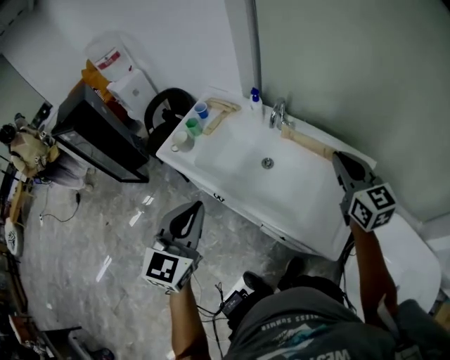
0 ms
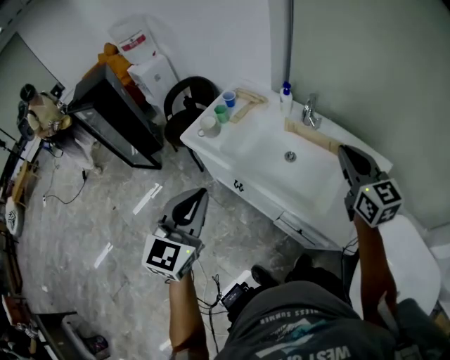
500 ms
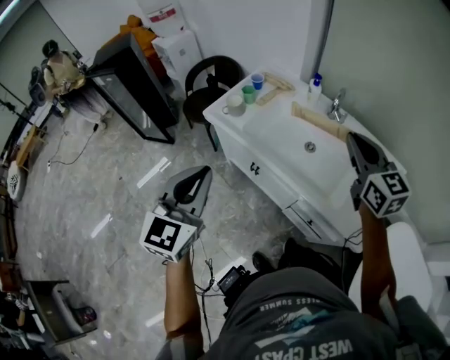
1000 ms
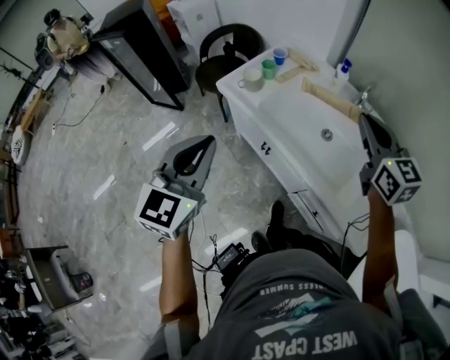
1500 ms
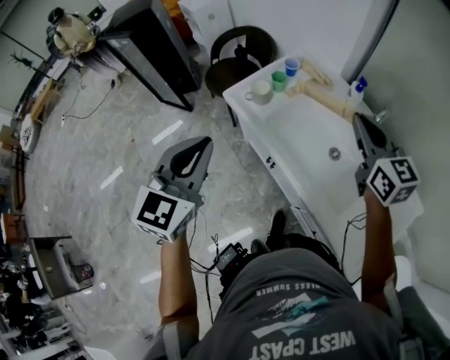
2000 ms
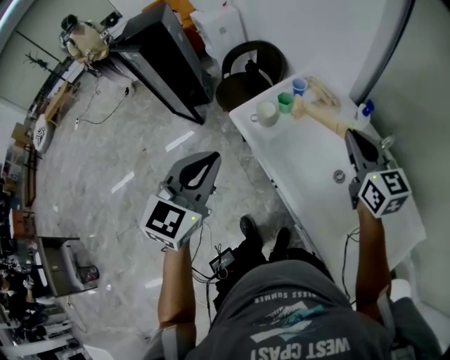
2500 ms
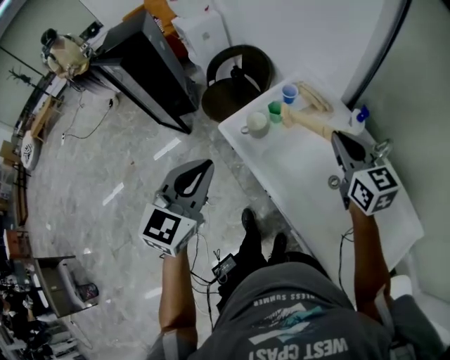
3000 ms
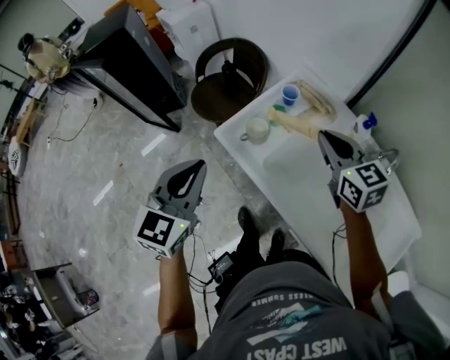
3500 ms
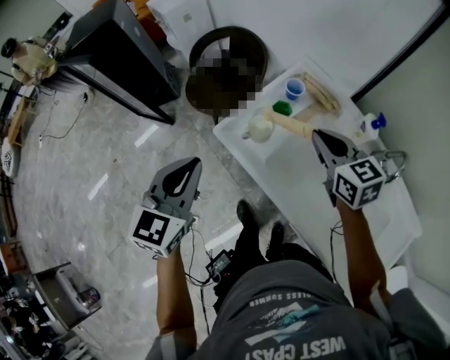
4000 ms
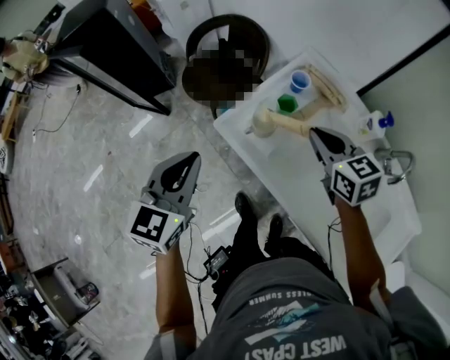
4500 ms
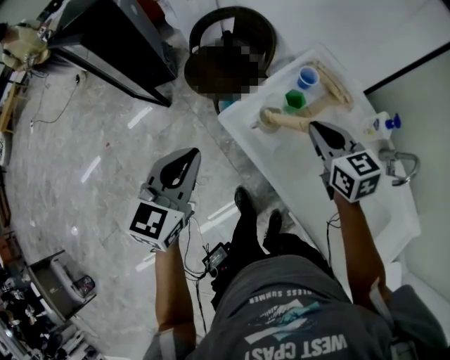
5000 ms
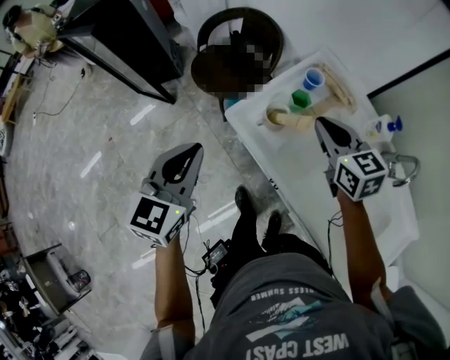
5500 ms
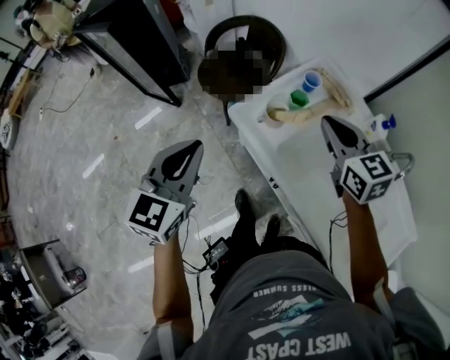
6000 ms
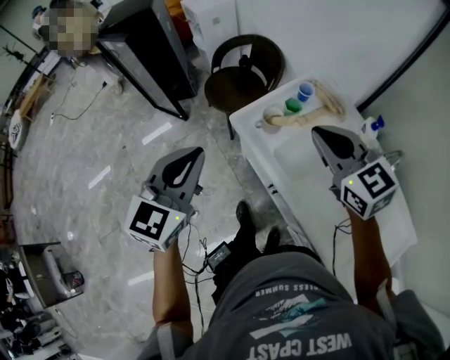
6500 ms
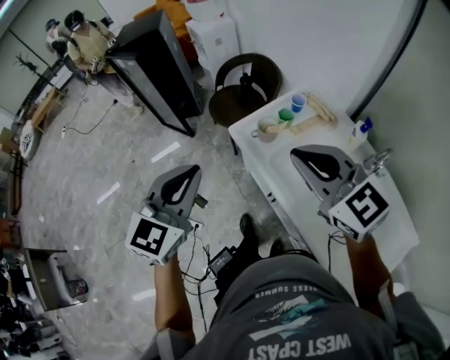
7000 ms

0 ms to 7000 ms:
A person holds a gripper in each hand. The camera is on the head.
0 ms to 2000 ms: Both grippers move to the left and forward, roughly 25 cm. The right gripper swivels some 20 degrees.
2000 ms to 3500 ms: The left gripper moves forward, about 15 cm; the right gripper is displaced forward, to the left and downward by about 20 cm.
3500 ms to 5000 ms: The grippers both shift downward and to the left by about 10 cm.
5000 ms to 7000 ms: The right gripper is displaced upward and backward by about 30 cm, and rotates approximately 40 degrees; the left gripper goes roughly 20 cm backward and upward.

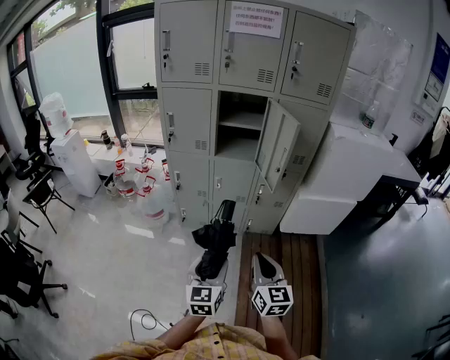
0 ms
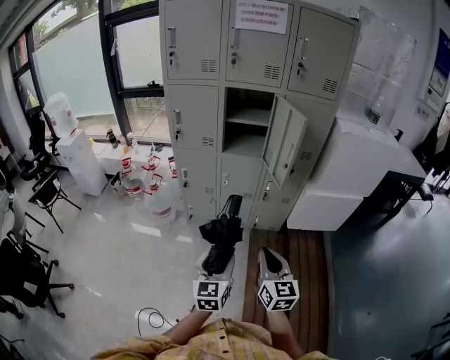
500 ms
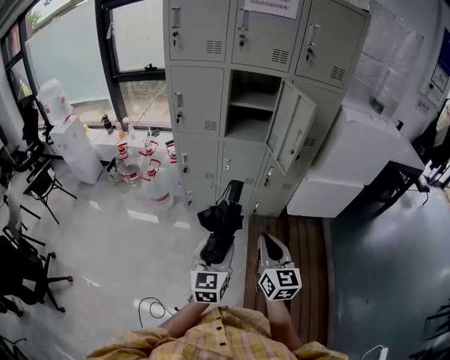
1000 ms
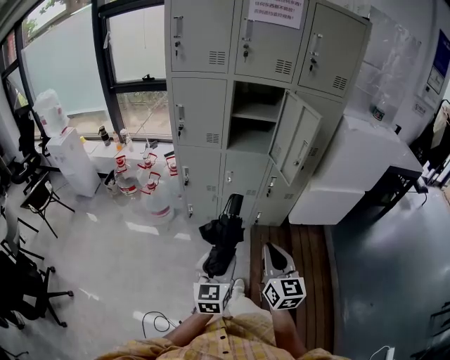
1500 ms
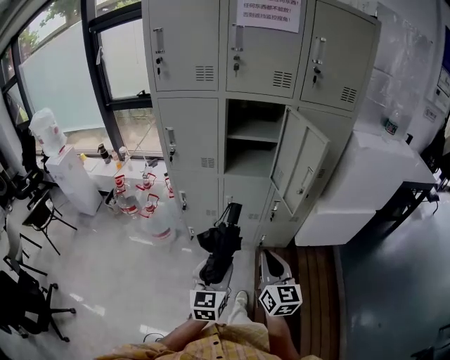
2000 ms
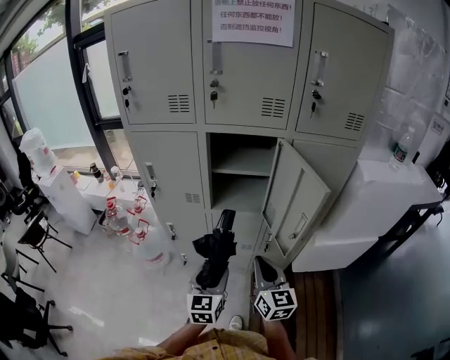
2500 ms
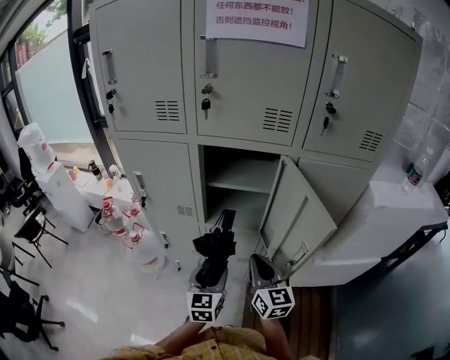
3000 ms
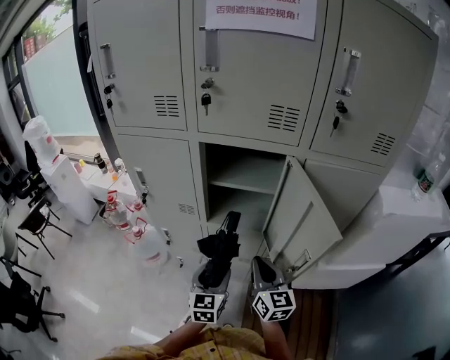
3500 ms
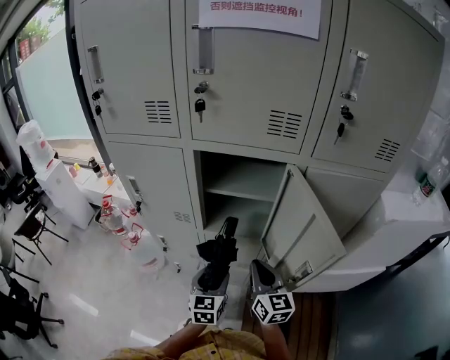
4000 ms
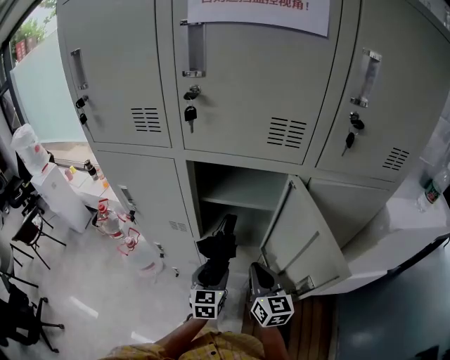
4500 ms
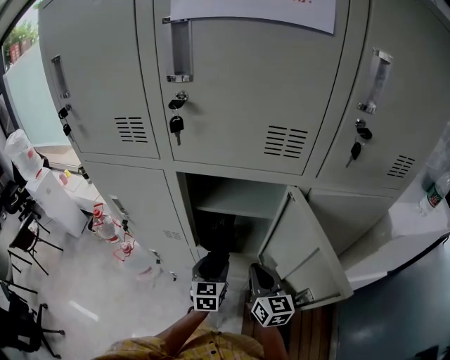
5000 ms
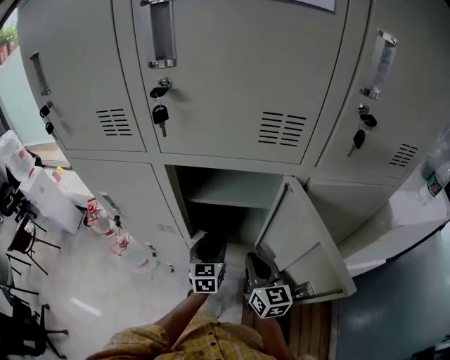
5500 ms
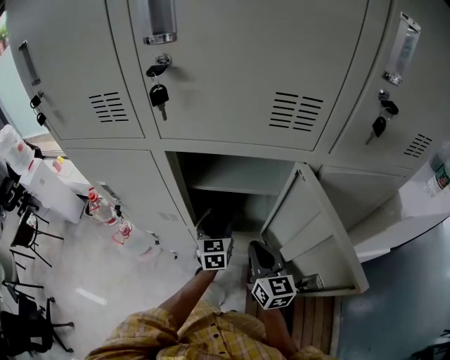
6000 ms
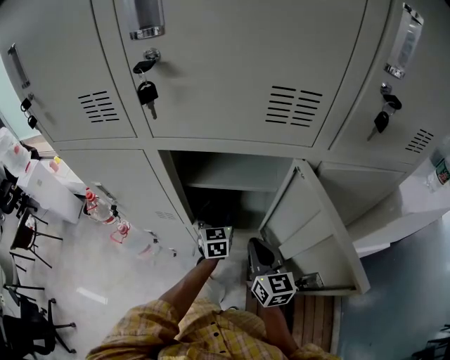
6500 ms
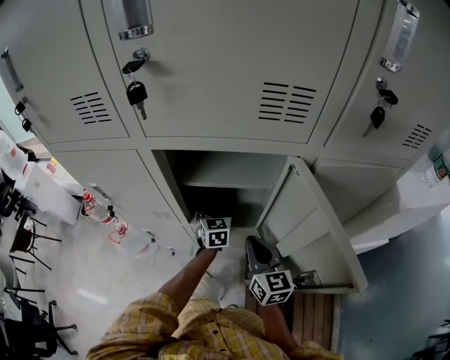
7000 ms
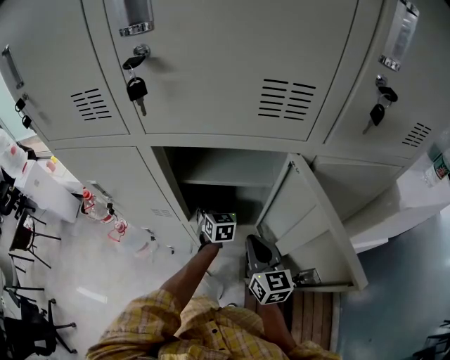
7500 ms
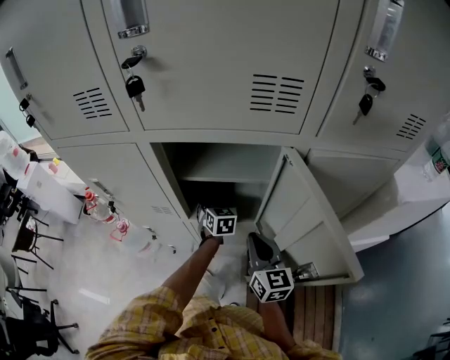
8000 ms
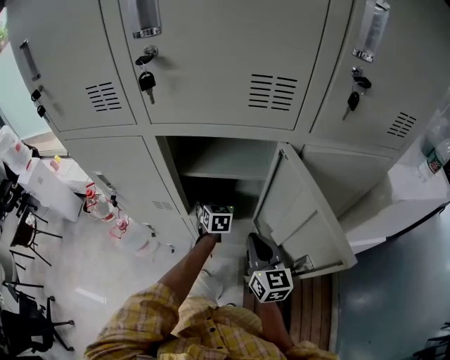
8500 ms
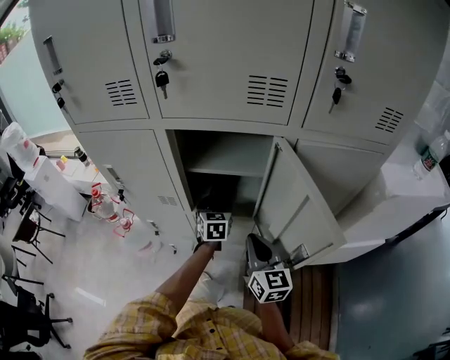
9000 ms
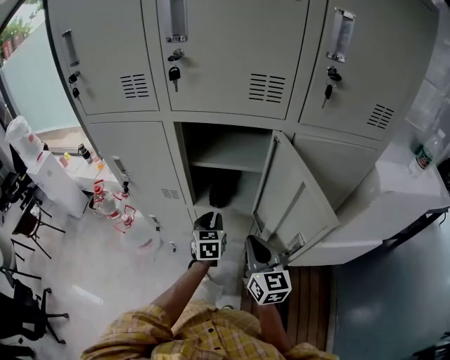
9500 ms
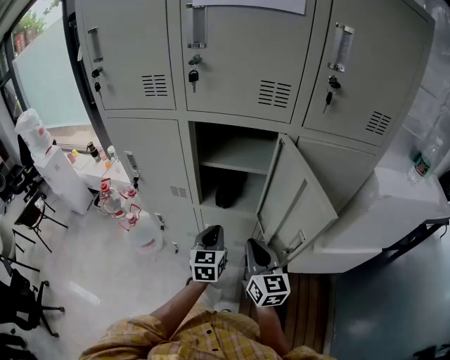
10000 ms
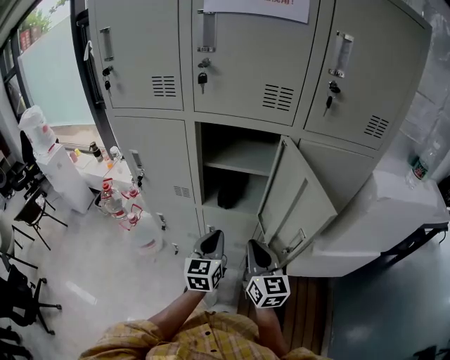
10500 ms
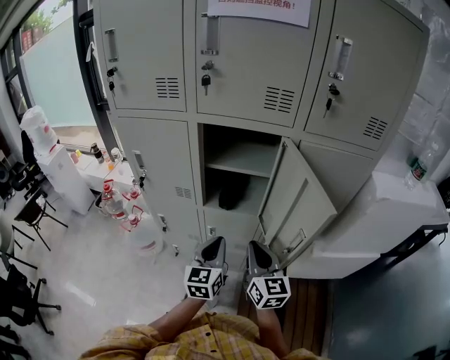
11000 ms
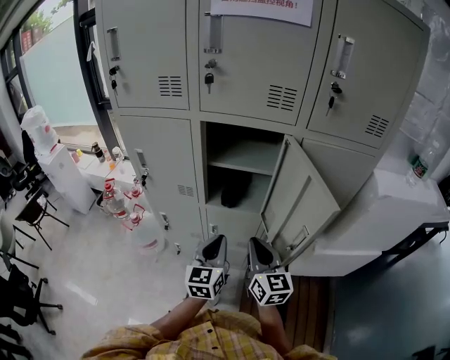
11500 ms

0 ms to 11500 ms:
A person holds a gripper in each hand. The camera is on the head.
0 ms to 2000 ms: The grippers both shift forward by some 15 cm.
2000 ms to 4000 ms: Both grippers travel together forward, some 30 cm.
4000 ms to 6000 ms: The left gripper moves forward, about 20 cm. The right gripper shifts approximately 10 cm forward.
6000 ms to 7500 ms: The left gripper travels forward by some 5 cm.
7500 ms to 9500 ms: The right gripper heads backward, covering approximately 10 cm; the left gripper shifts about 15 cm backward, and closes its fingers.
9500 ms to 11500 ms: The left gripper moves backward and upward, roughly 20 cm, and rotates some 20 degrees, while the right gripper moves about 5 cm.

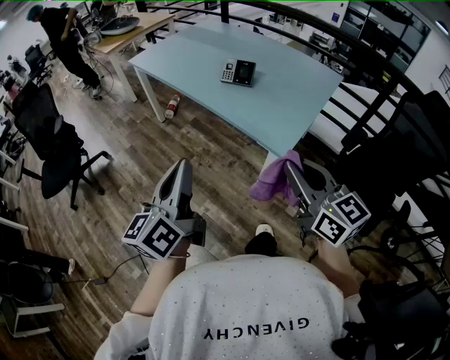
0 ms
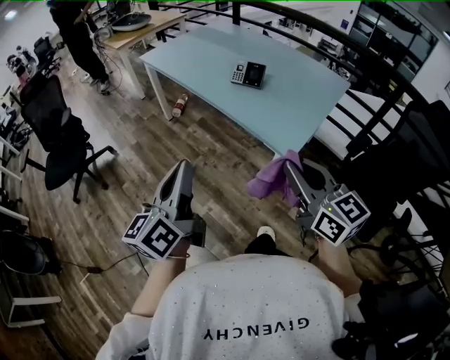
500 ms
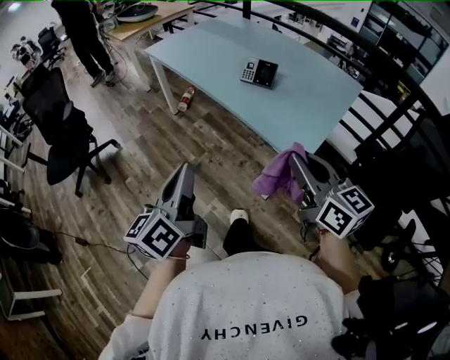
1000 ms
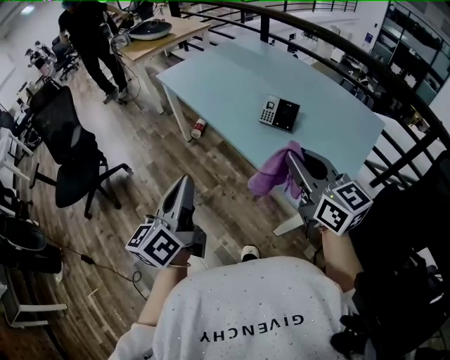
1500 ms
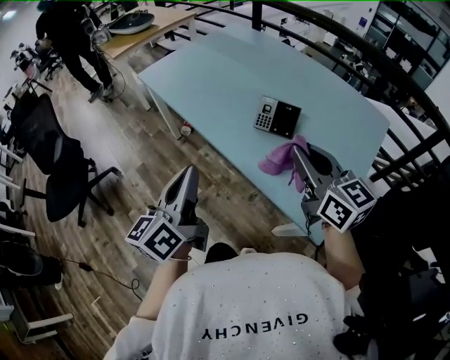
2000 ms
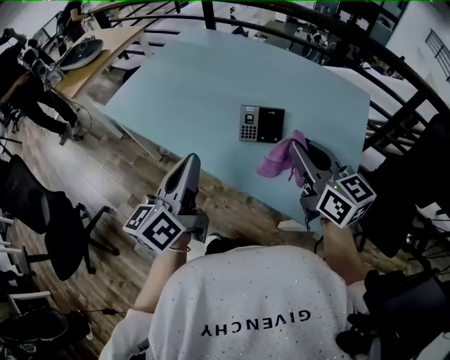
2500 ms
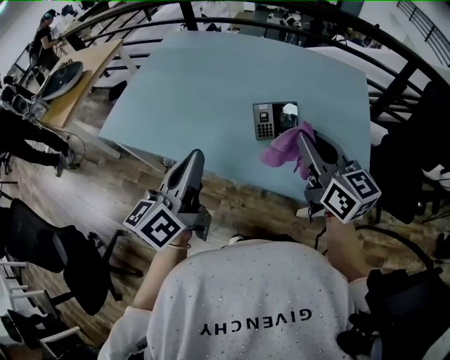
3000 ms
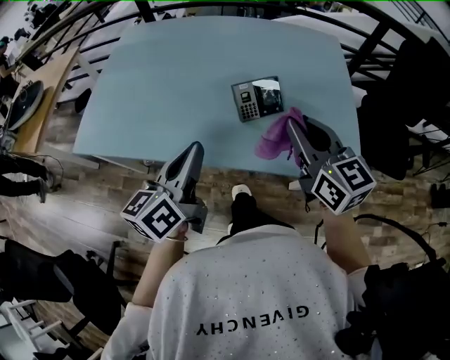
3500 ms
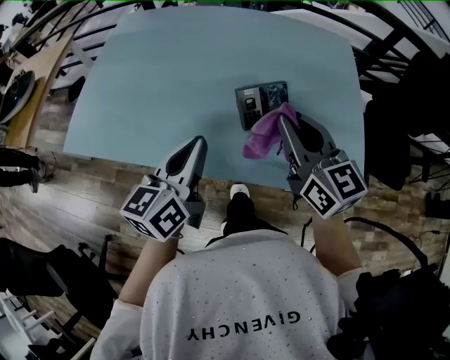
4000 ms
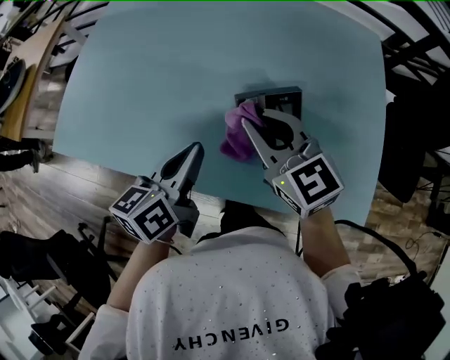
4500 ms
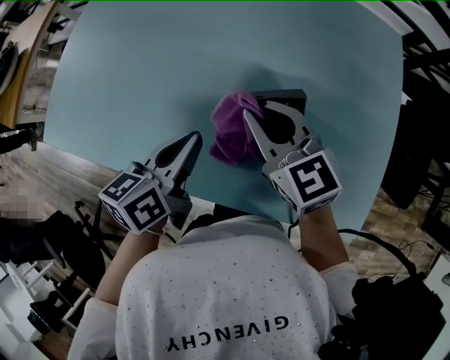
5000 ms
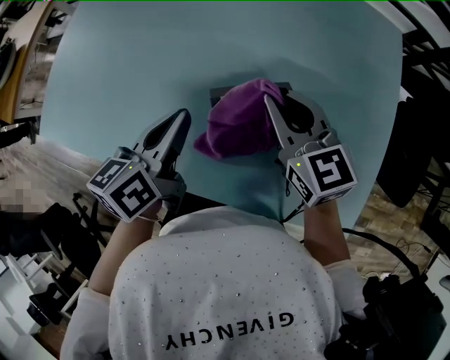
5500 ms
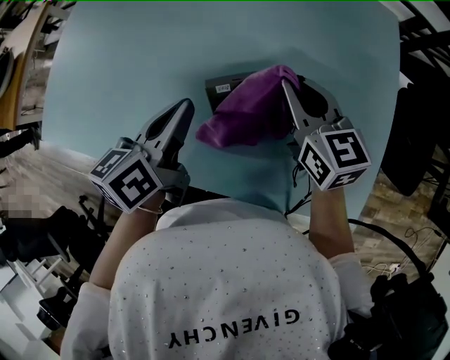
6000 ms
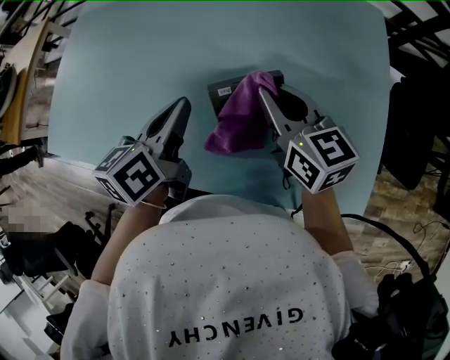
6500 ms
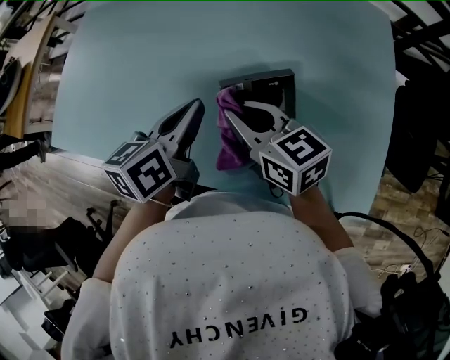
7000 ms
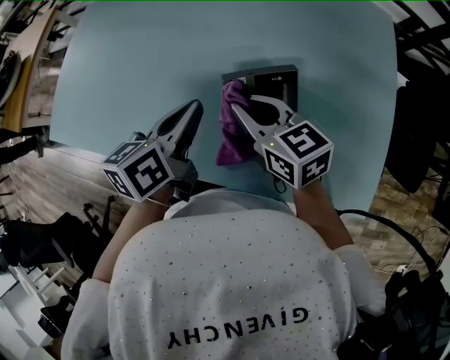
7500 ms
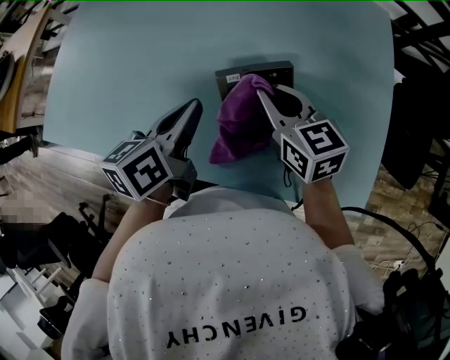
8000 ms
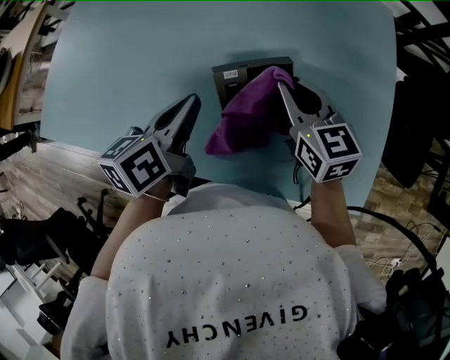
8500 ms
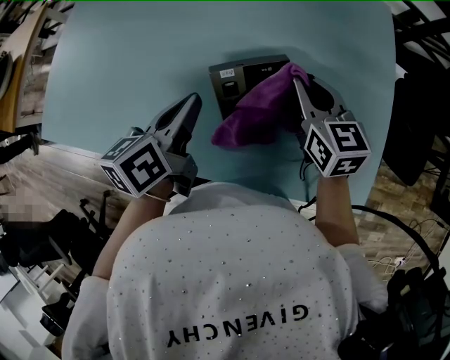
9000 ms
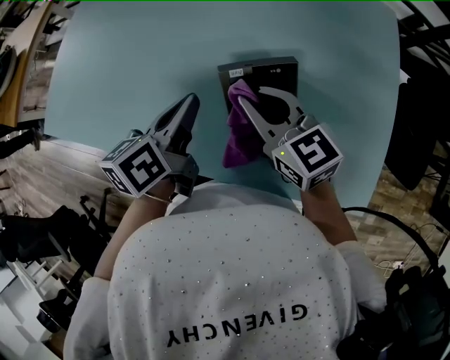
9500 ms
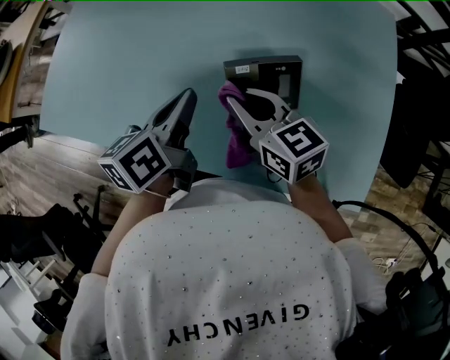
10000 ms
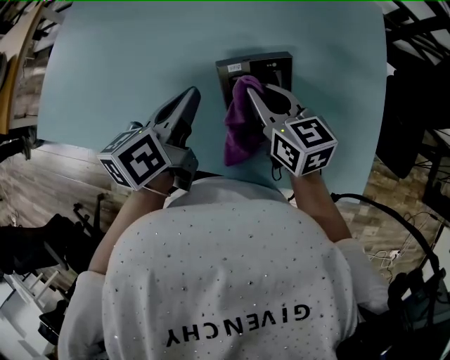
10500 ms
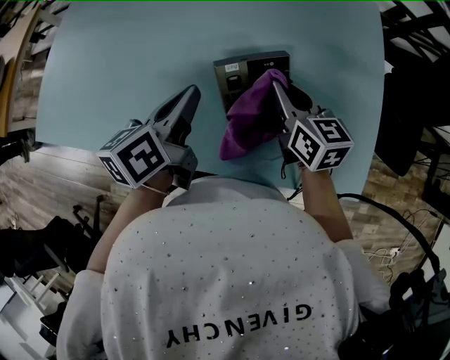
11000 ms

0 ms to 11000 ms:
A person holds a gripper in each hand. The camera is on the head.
0 ms to 2000 ms: Both grippers move forward, some 35 cm.
2000 ms to 3500 ms: The left gripper shifts by approximately 20 cm, and rotates some 40 degrees. The right gripper ends up approximately 10 cm from where it was, and swivels about 40 degrees.
3500 ms to 5500 ms: The two grippers go some 25 cm forward and downward. The left gripper turns by about 20 degrees.
5500 ms to 7500 ms: The right gripper moves to the left and backward, about 10 cm.
7500 ms to 9000 ms: The right gripper shifts about 15 cm to the right, and swivels roughly 20 degrees.
9000 ms to 11000 ms: The right gripper reaches about 15 cm to the left, then returns.
